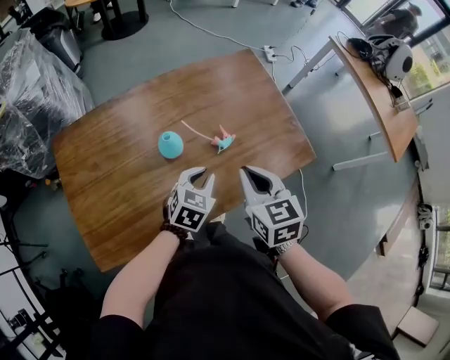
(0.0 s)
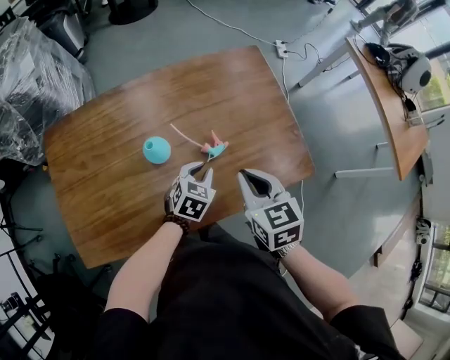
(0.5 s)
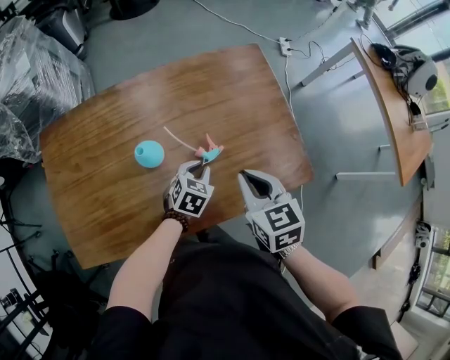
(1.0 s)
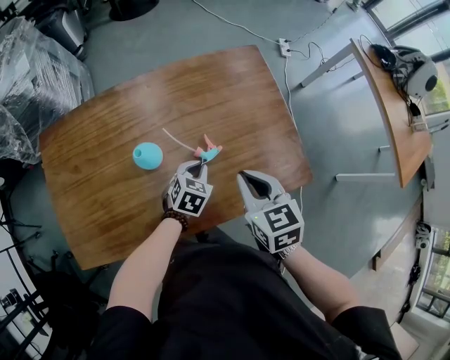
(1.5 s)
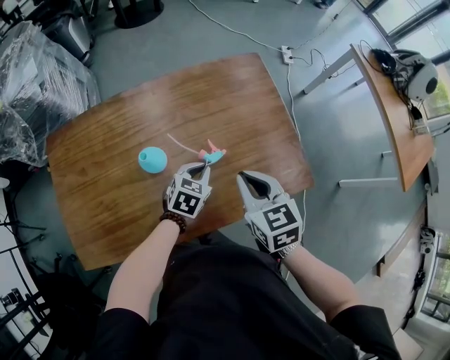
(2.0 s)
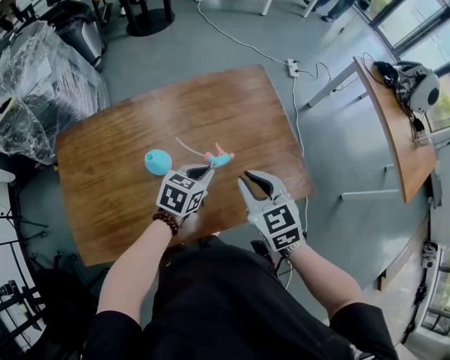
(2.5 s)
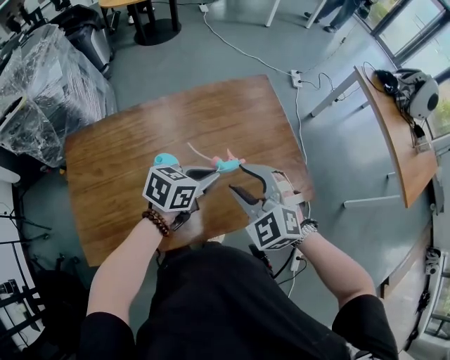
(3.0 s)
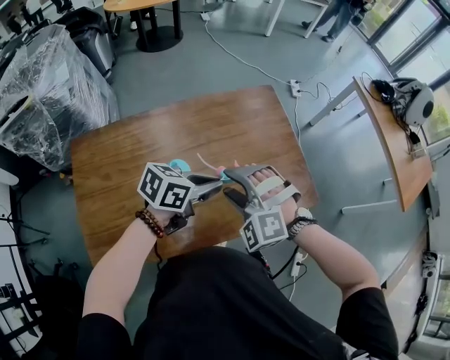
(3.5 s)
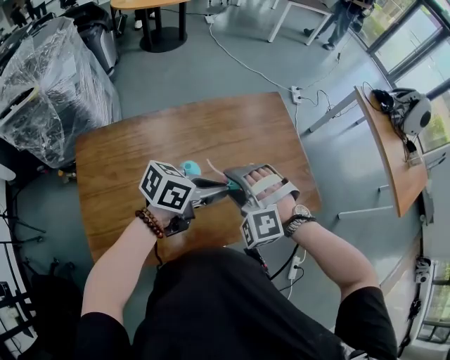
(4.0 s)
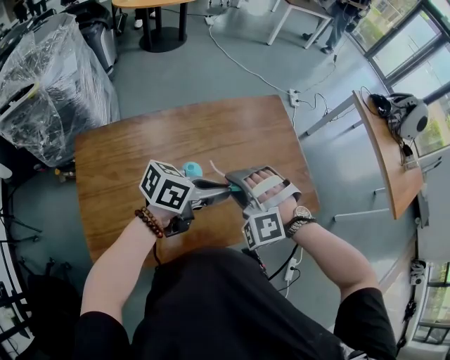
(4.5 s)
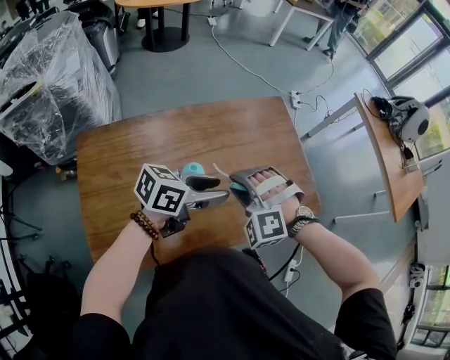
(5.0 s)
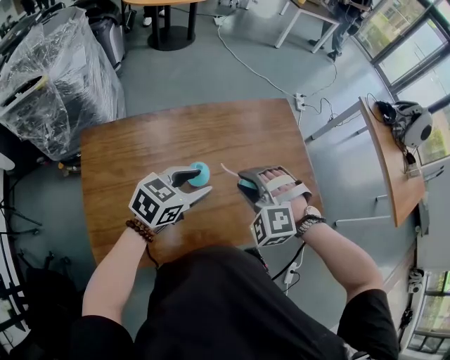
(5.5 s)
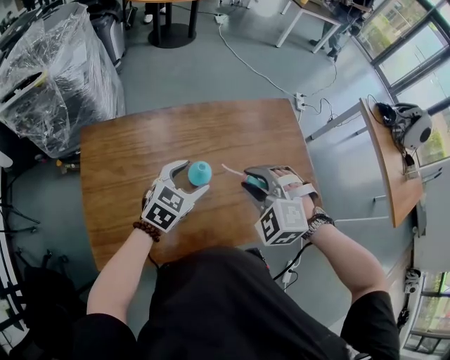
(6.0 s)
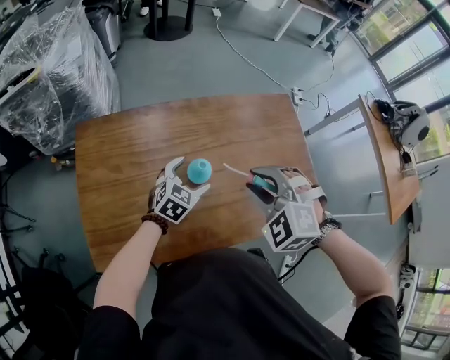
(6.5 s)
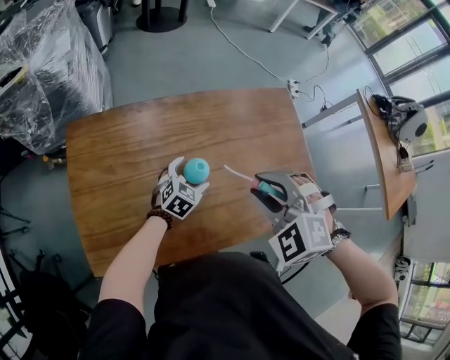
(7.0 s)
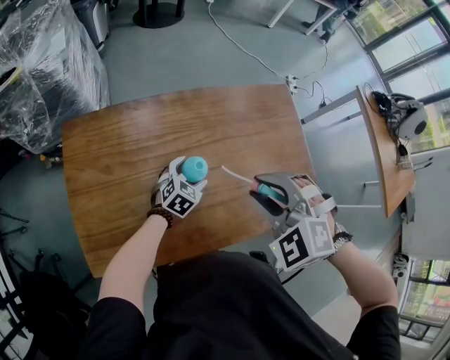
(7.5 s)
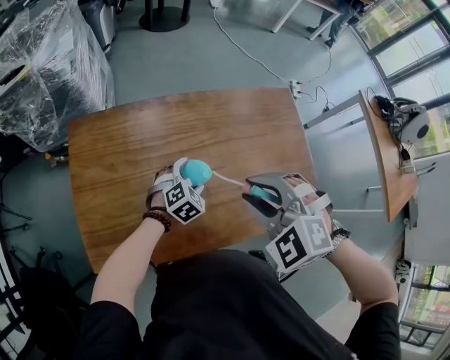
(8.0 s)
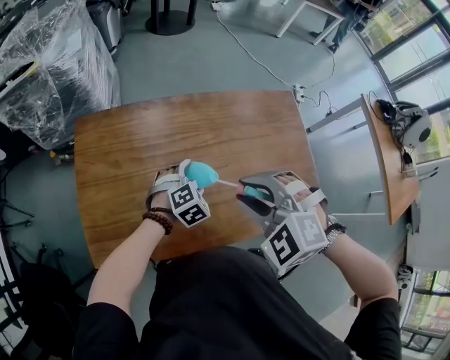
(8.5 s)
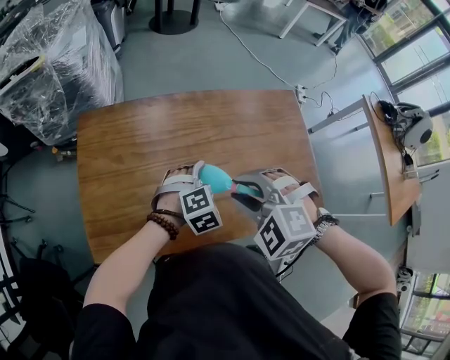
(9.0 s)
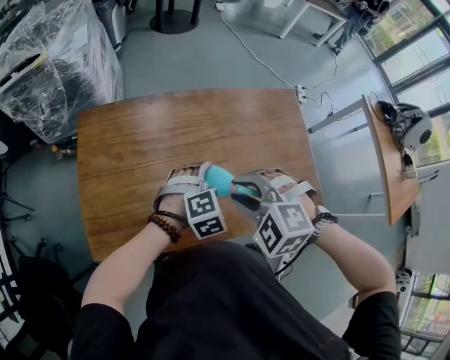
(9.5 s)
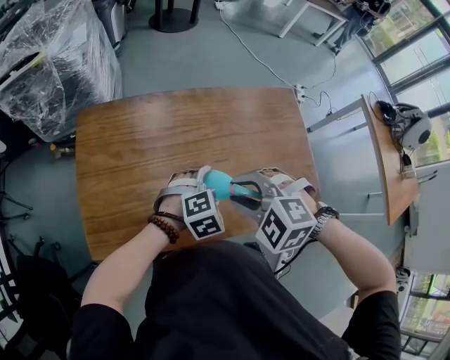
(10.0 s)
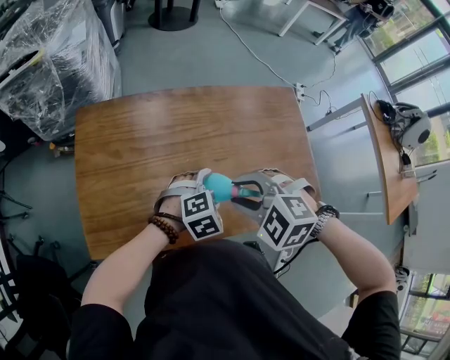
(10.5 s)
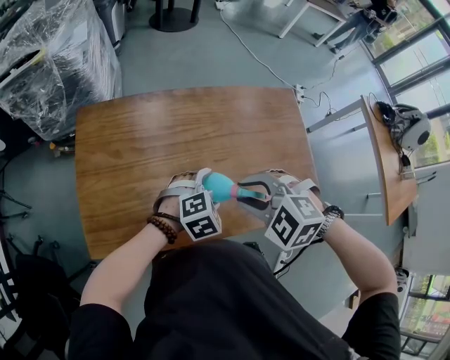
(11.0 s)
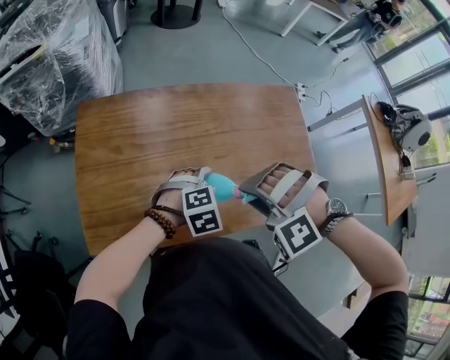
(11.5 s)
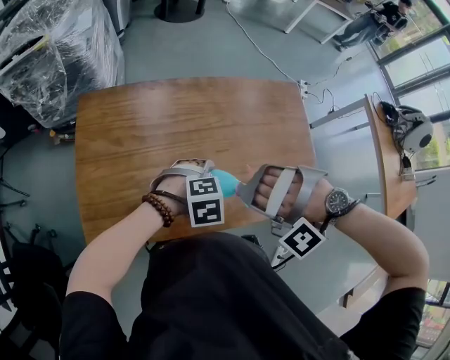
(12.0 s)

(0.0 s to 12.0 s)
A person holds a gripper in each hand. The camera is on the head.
0.0 s - 2.0 s: The left gripper shifts approximately 10 cm forward and downward. Meanwhile the right gripper moves forward and to the right, some 10 cm.
2.0 s - 4.0 s: The left gripper shifts roughly 20 cm upward, and swivels some 40 degrees. The right gripper travels to the left by about 15 cm, rolls counterclockwise, seen from behind, by some 90 degrees, and opens its fingers.
4.0 s - 6.0 s: The right gripper closes up. The left gripper moves to the left and downward, approximately 15 cm, swivels approximately 50 degrees, and opens.
6.0 s - 8.0 s: The right gripper goes some 5 cm upward. The left gripper shifts about 15 cm downward, and turns by about 20 degrees.
8.0 s - 10.0 s: The left gripper goes some 10 cm backward and upward; the right gripper ends up some 5 cm from where it was.
10.0 s - 12.0 s: The right gripper twists some 80 degrees counterclockwise, seen from behind.

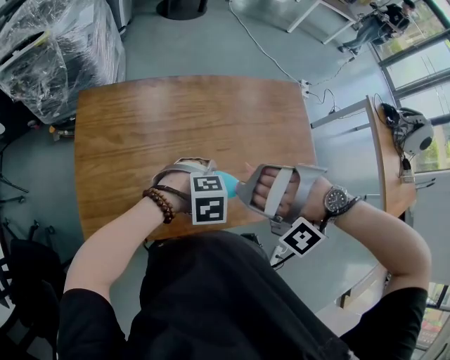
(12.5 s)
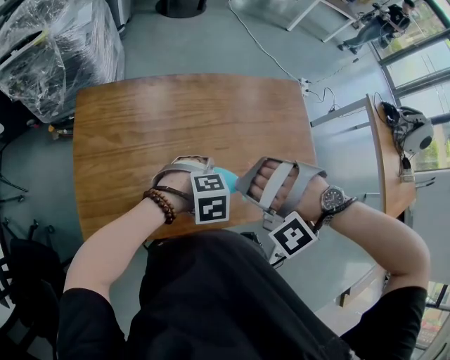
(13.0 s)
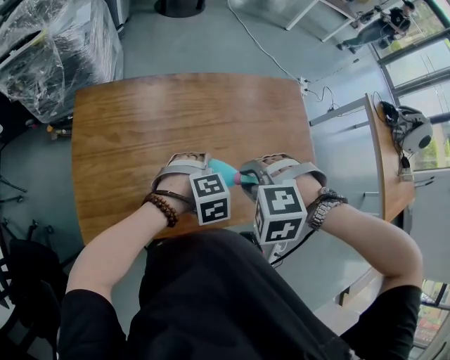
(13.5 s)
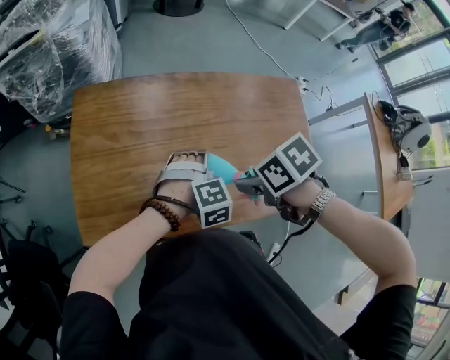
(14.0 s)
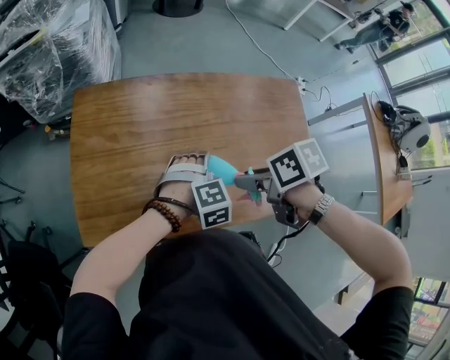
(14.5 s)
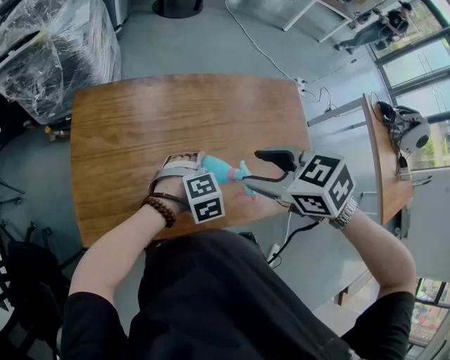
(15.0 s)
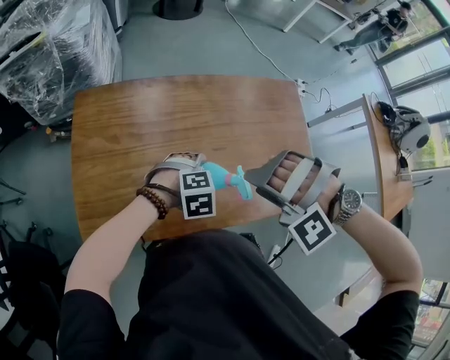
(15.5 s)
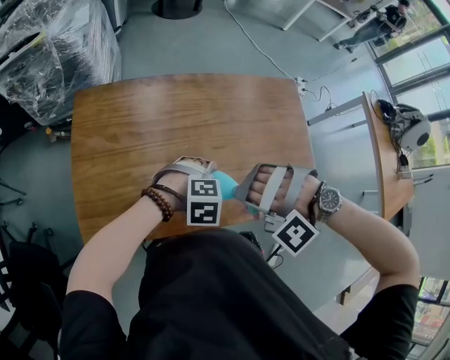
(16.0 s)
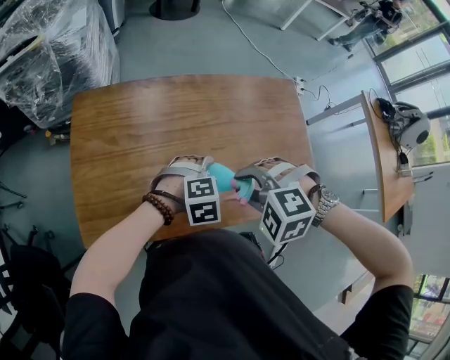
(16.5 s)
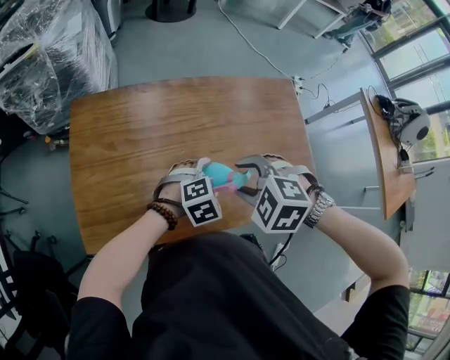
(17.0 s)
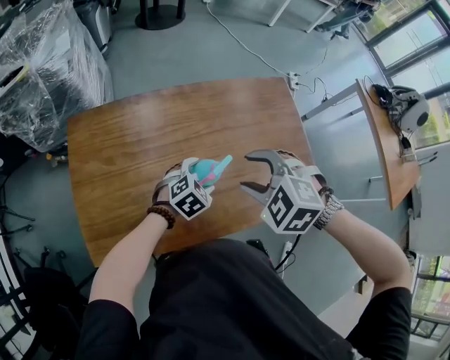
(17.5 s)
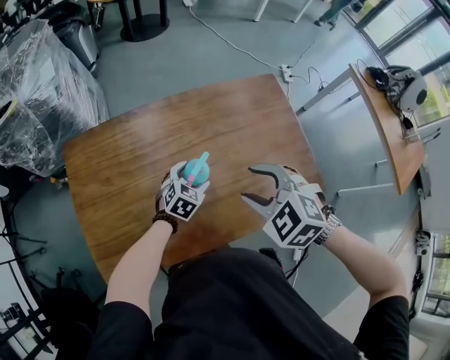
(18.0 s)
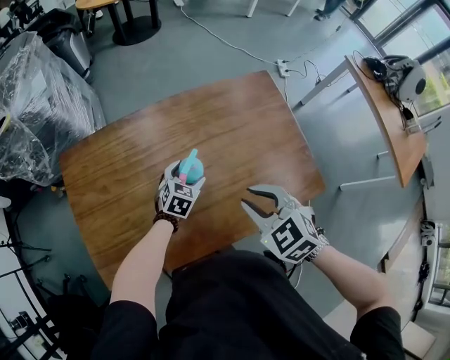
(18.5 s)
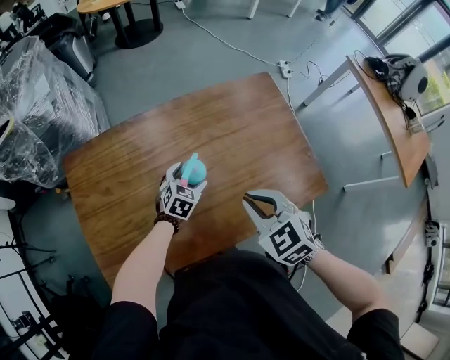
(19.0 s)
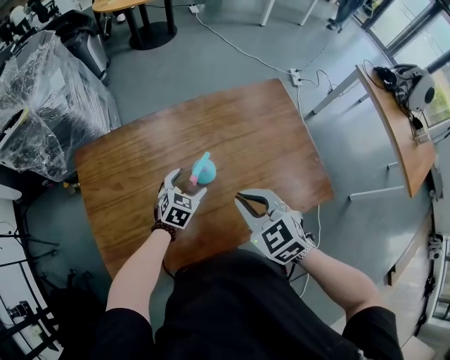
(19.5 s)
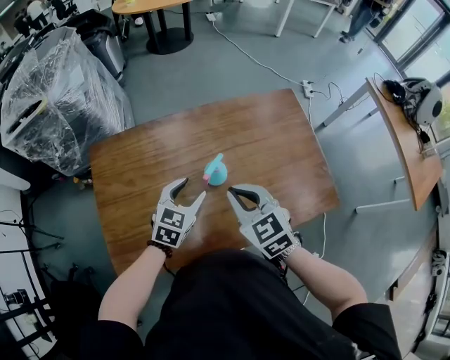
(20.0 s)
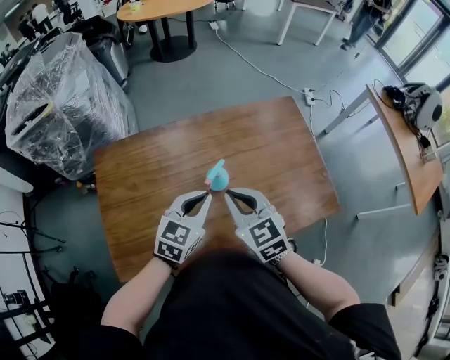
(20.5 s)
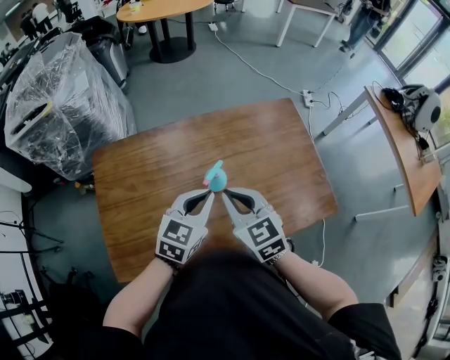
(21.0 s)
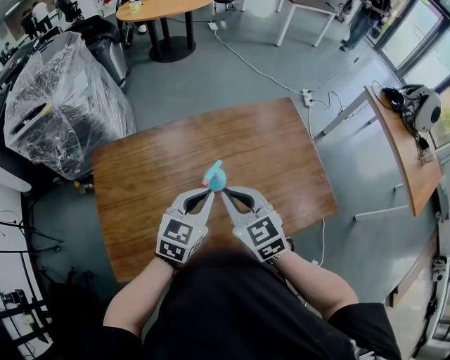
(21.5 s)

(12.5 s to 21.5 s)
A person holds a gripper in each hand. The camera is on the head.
12.5 s - 14.5 s: The right gripper ends up about 5 cm from where it was, and twists about 160 degrees clockwise, seen from behind, while the left gripper shifts by approximately 5 cm, and swivels approximately 20 degrees.
14.5 s - 17.0 s: The right gripper travels upward and back again, approximately 10 cm each way, and twists roughly 80 degrees counterclockwise, seen from behind.
17.0 s - 19.5 s: The left gripper moves forward, to the left and downward, approximately 10 cm, and turns by approximately 30 degrees. The right gripper tilts its fingers about 30 degrees upward, and closes.
19.5 s - 21.5 s: The right gripper heads to the left, covering approximately 5 cm, while the left gripper moves upward, approximately 20 cm, rotates approximately 20 degrees, and closes its fingers.

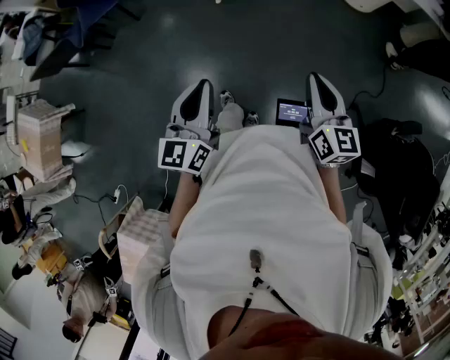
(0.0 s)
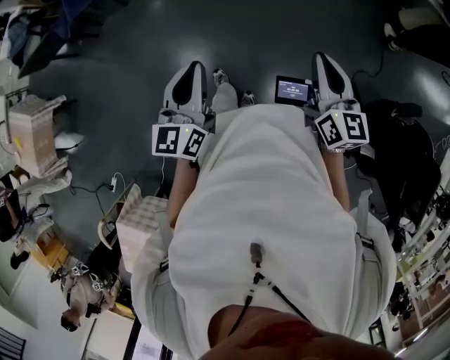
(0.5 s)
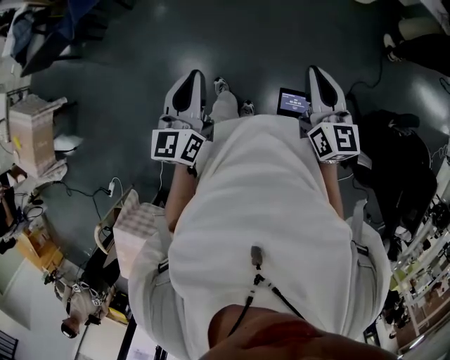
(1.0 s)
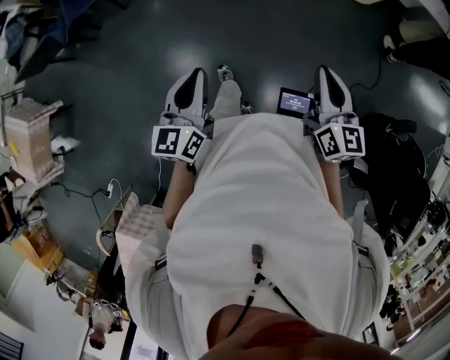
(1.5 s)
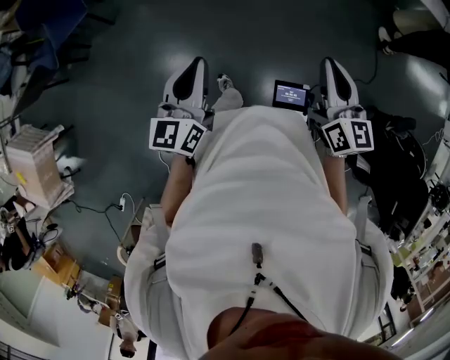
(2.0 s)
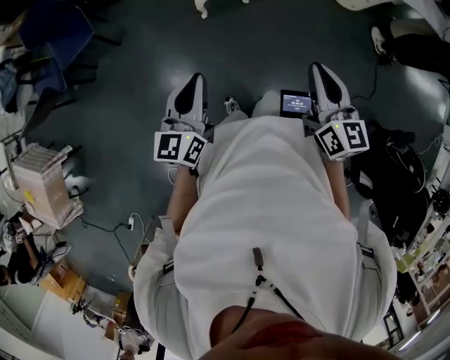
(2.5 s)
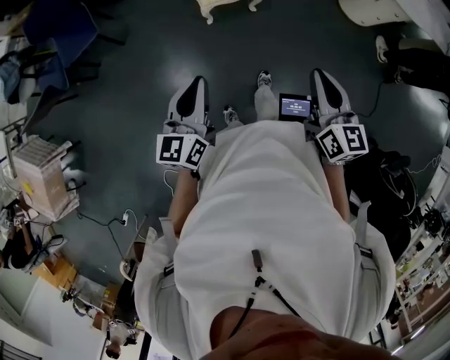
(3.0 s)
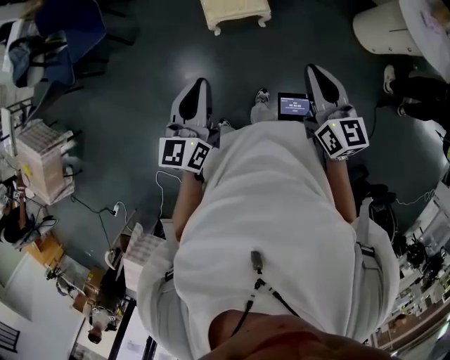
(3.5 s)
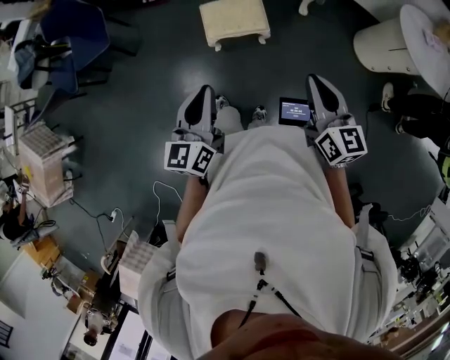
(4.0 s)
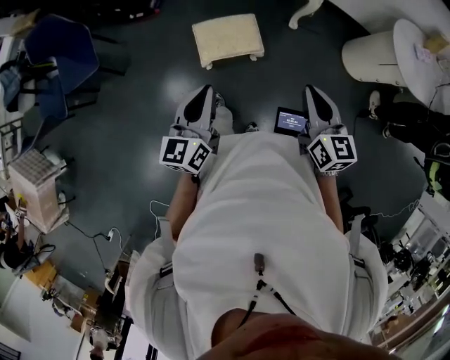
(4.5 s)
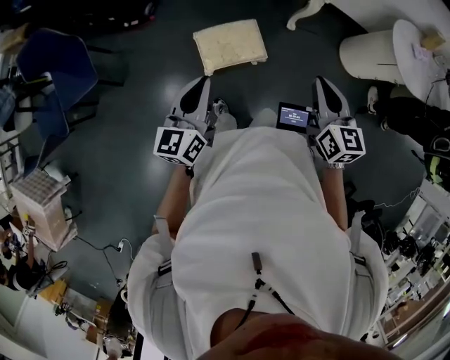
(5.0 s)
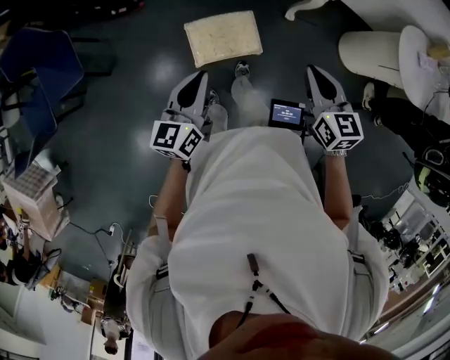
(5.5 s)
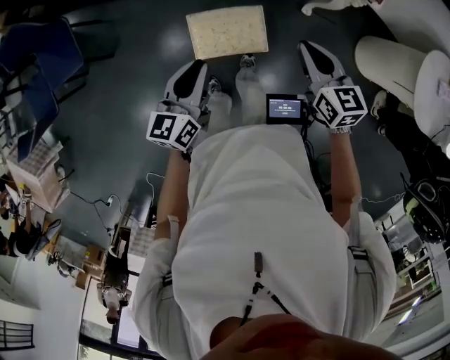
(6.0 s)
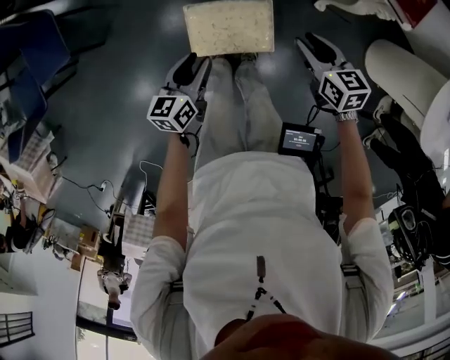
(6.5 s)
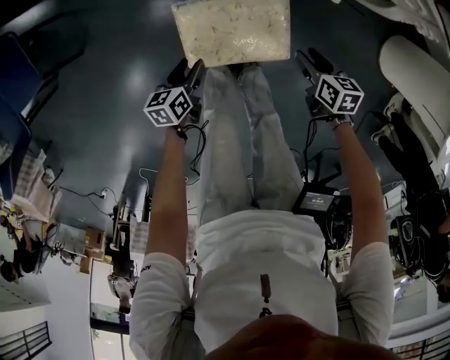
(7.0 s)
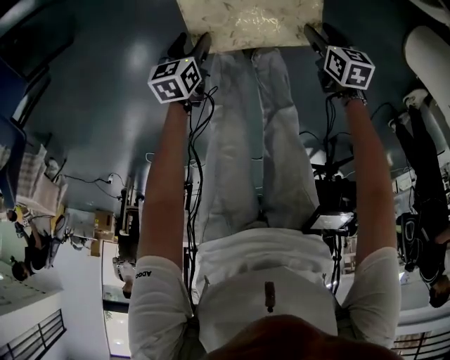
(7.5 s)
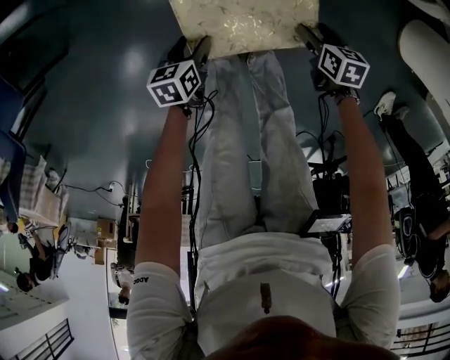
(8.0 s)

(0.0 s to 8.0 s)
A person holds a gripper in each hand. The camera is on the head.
0.0 s - 2.0 s: Both grippers move forward, some 25 cm.
2.0 s - 4.0 s: Both grippers move forward, about 40 cm.
4.0 s - 6.0 s: Both grippers are carried forward, roughly 40 cm.
6.0 s - 8.0 s: The two grippers go roughly 60 cm downward. The right gripper tilts its fingers roughly 30 degrees downward, and opens; the left gripper points its fingers roughly 40 degrees further downward, and opens up.
